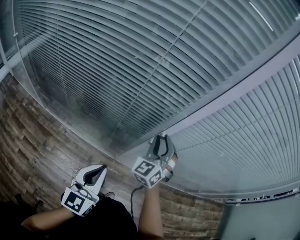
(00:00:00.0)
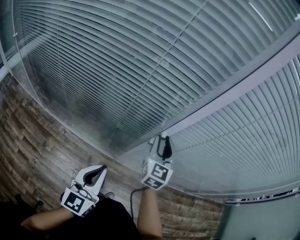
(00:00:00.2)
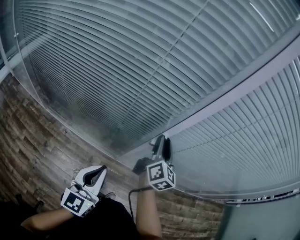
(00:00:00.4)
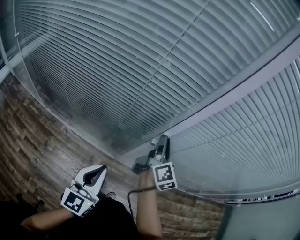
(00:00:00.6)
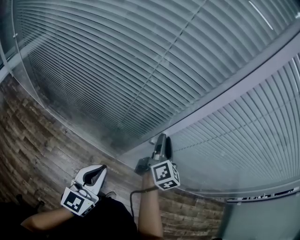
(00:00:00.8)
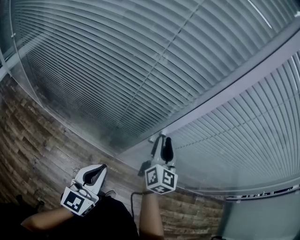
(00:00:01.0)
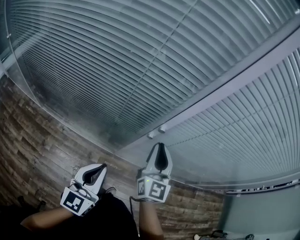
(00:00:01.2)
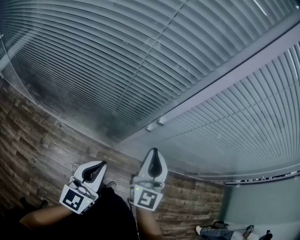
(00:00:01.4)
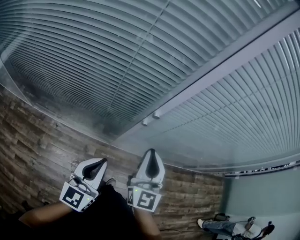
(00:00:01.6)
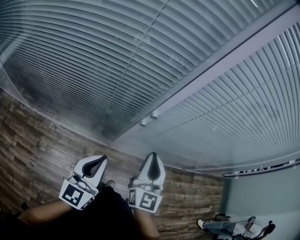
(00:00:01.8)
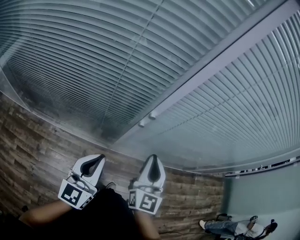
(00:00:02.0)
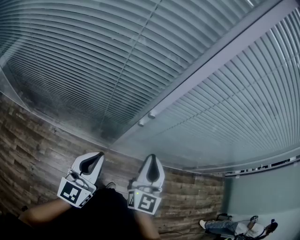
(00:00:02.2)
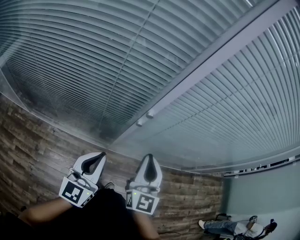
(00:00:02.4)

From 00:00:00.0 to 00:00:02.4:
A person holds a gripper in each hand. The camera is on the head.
From 00:00:00.0 to 00:00:01.2: The right gripper is displaced backward by some 5 cm, and rotates around the line of its fingers by roughly 40 degrees, clockwise from behind.
From 00:00:01.2 to 00:00:02.4: The right gripper travels backward by about 10 cm.

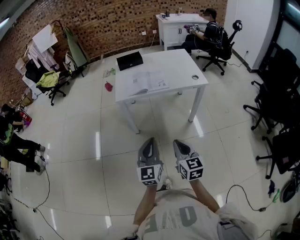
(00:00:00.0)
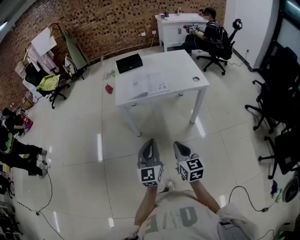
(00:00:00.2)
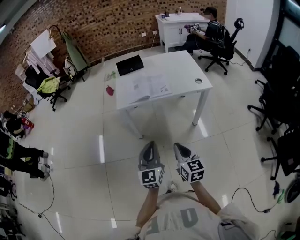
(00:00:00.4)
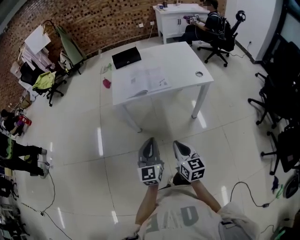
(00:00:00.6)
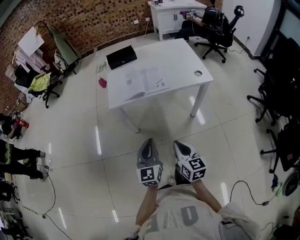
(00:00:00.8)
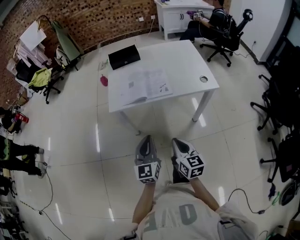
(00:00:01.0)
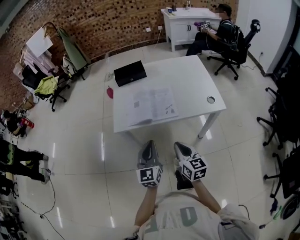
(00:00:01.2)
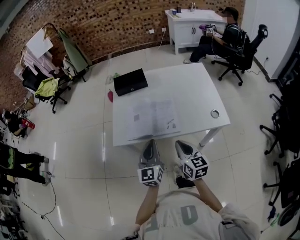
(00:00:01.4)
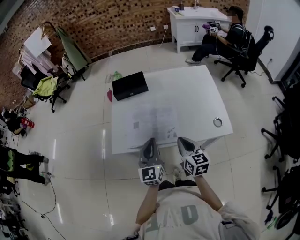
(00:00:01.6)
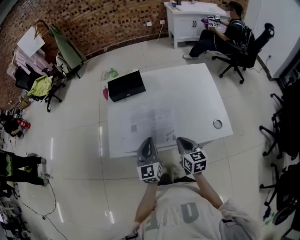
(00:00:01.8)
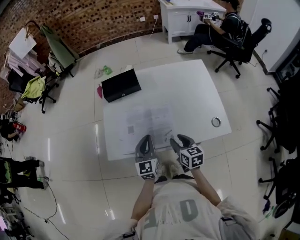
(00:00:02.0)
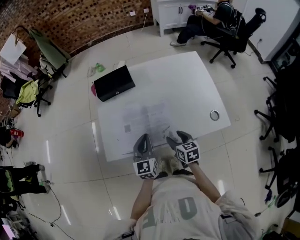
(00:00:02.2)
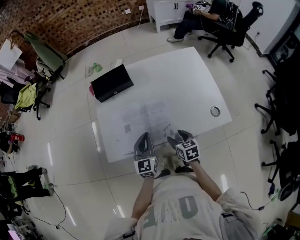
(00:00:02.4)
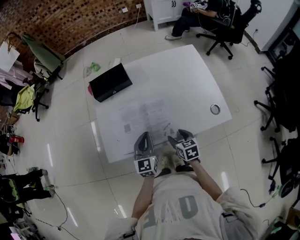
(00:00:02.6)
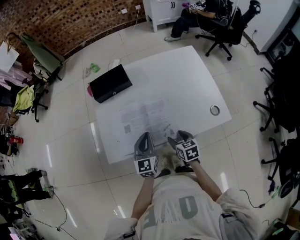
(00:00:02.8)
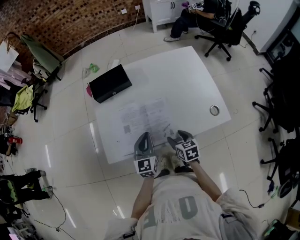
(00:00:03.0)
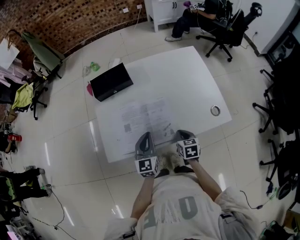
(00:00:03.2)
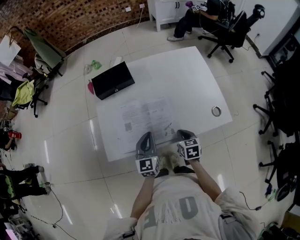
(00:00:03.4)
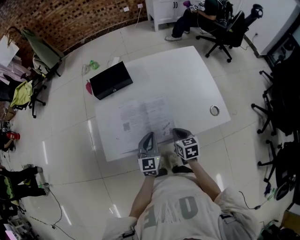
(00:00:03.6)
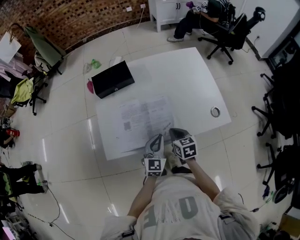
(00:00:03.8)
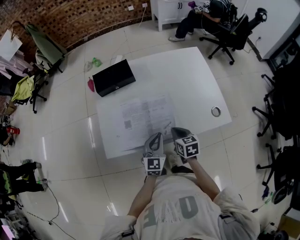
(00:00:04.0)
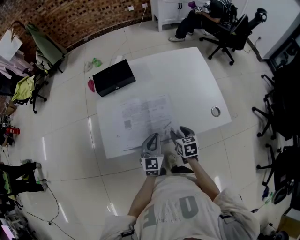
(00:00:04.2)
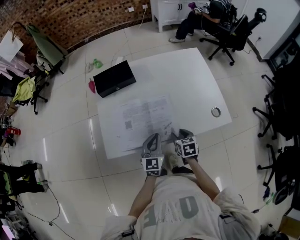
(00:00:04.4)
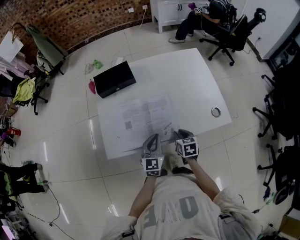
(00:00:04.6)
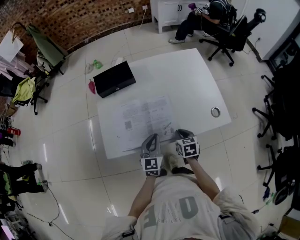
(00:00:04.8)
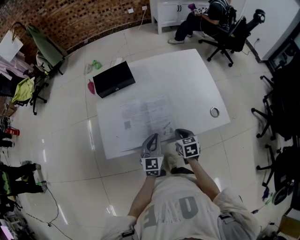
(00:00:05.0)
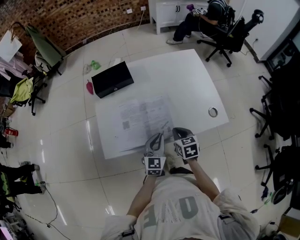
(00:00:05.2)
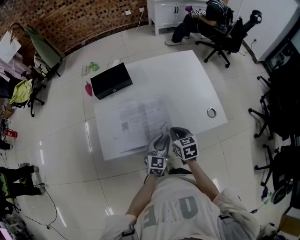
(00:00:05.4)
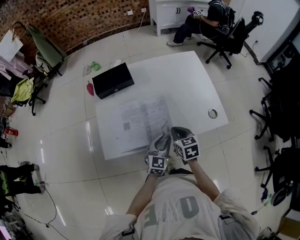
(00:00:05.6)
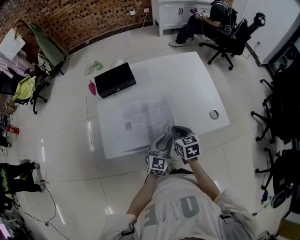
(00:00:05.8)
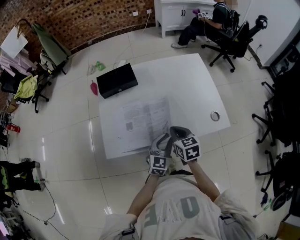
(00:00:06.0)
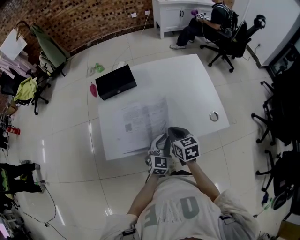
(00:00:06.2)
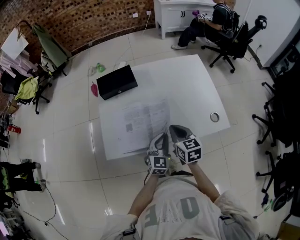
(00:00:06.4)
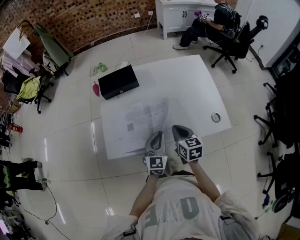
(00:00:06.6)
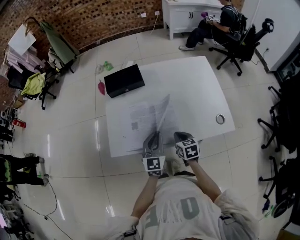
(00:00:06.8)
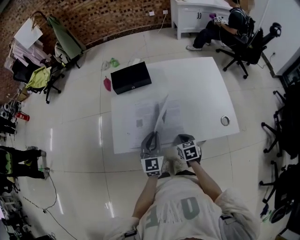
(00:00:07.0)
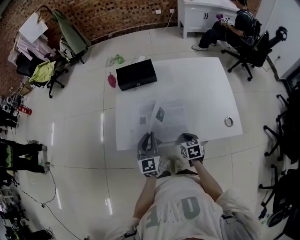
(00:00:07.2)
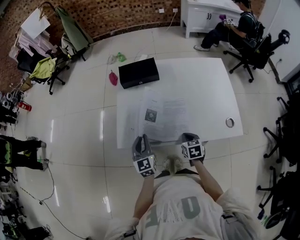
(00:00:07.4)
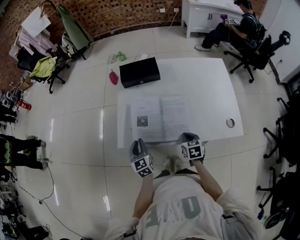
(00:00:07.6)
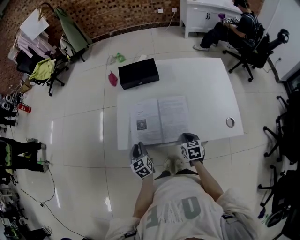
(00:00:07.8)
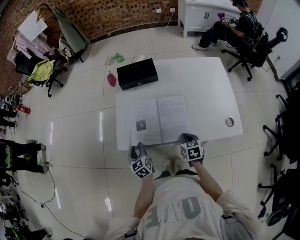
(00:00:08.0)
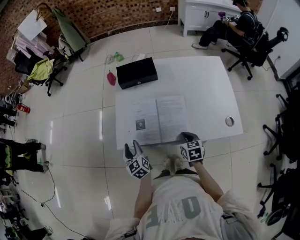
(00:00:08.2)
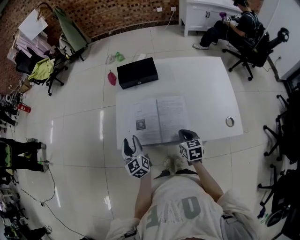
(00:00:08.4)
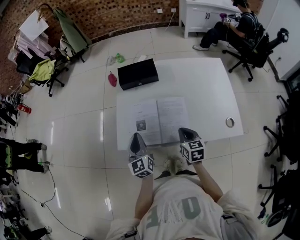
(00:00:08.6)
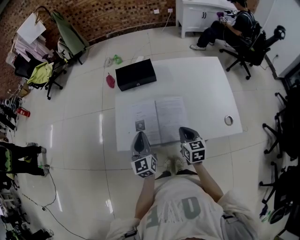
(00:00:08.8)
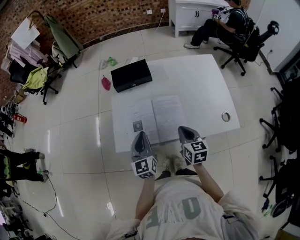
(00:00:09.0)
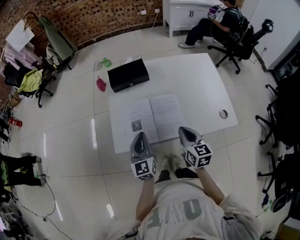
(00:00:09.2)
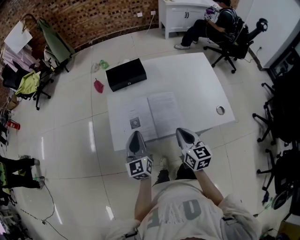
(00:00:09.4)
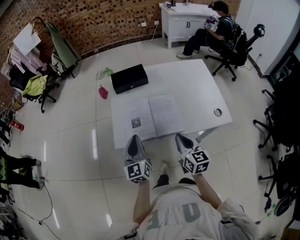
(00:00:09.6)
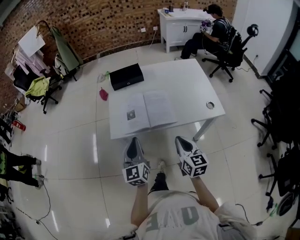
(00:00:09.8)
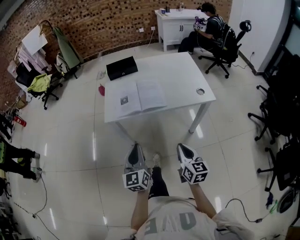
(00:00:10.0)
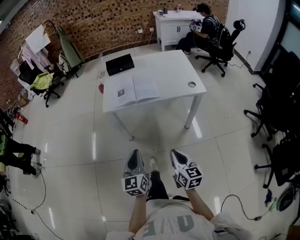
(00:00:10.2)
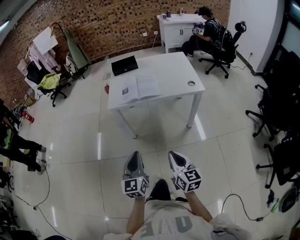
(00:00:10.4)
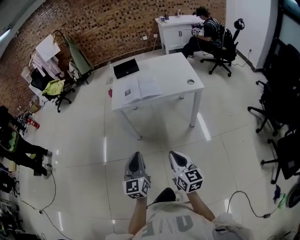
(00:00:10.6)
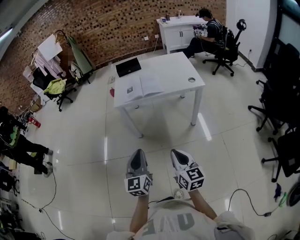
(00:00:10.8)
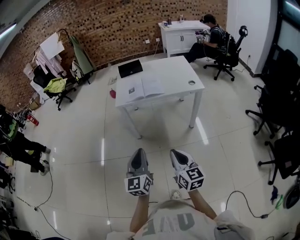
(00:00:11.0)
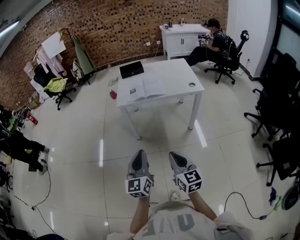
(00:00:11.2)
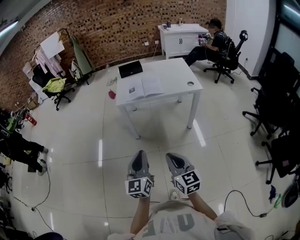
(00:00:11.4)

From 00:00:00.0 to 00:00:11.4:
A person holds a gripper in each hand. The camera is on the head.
From 00:00:00.0 to 00:00:01.4: The two grippers go roughly 40 cm forward.
From 00:00:01.4 to 00:00:02.8: The left gripper shifts approximately 15 cm forward and downward. The right gripper moves downward and forward, roughly 20 cm, swivels roughly 30 degrees, and opens up.
From 00:00:02.8 to 00:00:04.2: The left gripper changes place by roughly 5 cm; the right gripper closes and opens again.
From 00:00:04.2 to 00:00:05.6: The left gripper heads to the right, covering approximately 5 cm, and opens, while the right gripper shifts about 5 cm upward, and closes its fingers.
From 00:00:05.6 to 00:00:07.2: The right gripper shifts roughly 10 cm downward, while the left gripper goes about 15 cm to the left, and turns by some 30 degrees.
From 00:00:07.2 to 00:00:08.6: The right gripper goes approximately 10 cm upward. Meanwhile the left gripper is displaced to the left by approximately 10 cm, and opens, then closes once more.
From 00:00:08.6 to 00:00:10.0: The two grippers go roughly 35 cm backward. The right gripper rotates some 20 degrees.
From 00:00:10.0 to 00:00:11.4: Both grippers travel together backward, some 30 cm.

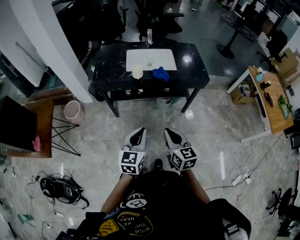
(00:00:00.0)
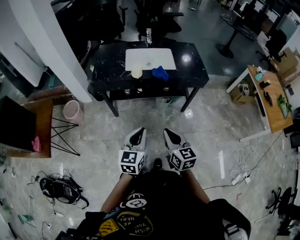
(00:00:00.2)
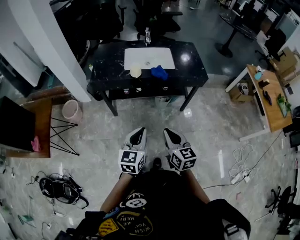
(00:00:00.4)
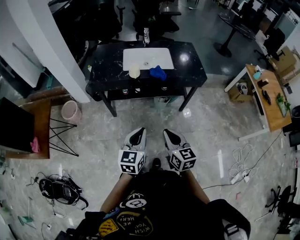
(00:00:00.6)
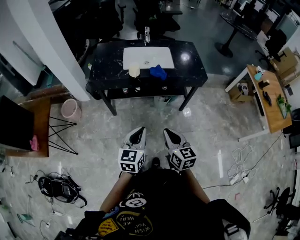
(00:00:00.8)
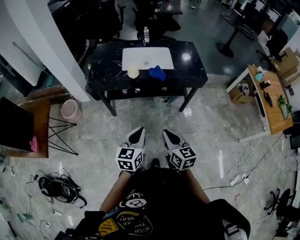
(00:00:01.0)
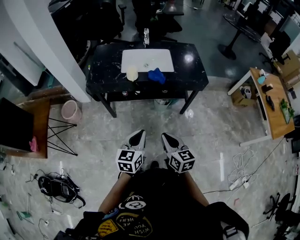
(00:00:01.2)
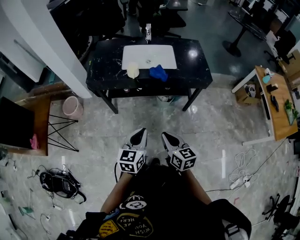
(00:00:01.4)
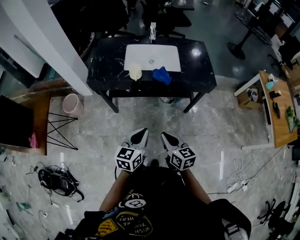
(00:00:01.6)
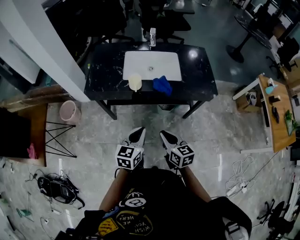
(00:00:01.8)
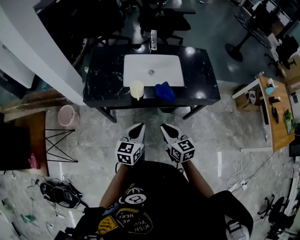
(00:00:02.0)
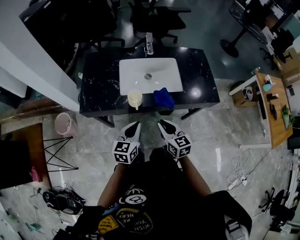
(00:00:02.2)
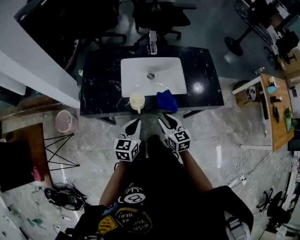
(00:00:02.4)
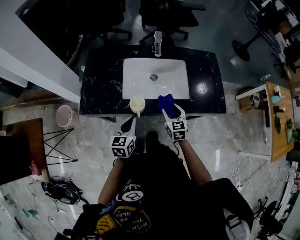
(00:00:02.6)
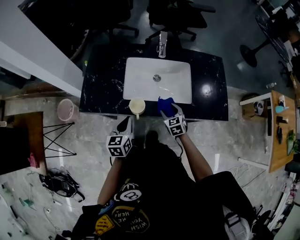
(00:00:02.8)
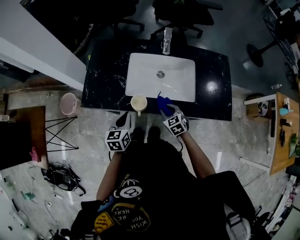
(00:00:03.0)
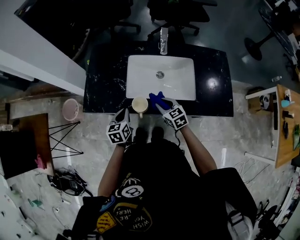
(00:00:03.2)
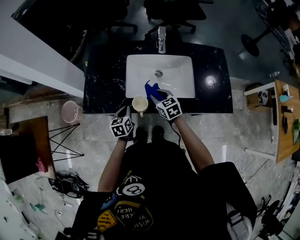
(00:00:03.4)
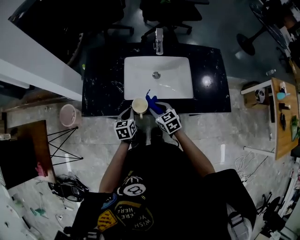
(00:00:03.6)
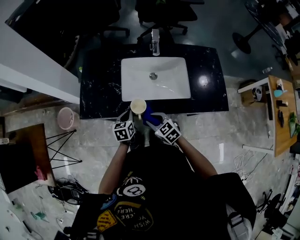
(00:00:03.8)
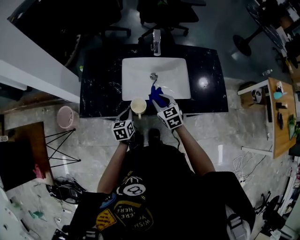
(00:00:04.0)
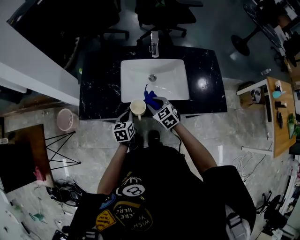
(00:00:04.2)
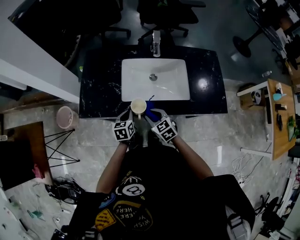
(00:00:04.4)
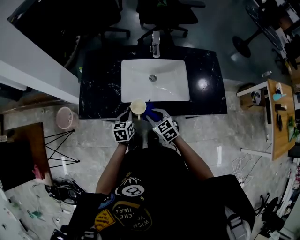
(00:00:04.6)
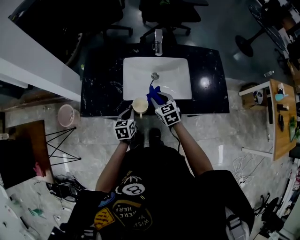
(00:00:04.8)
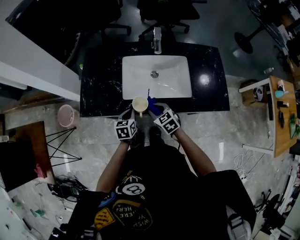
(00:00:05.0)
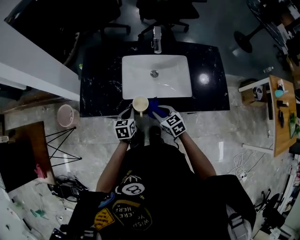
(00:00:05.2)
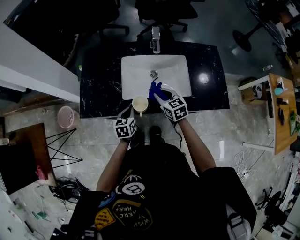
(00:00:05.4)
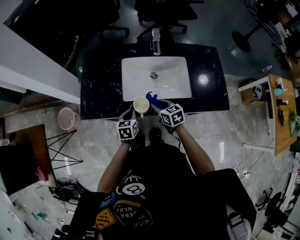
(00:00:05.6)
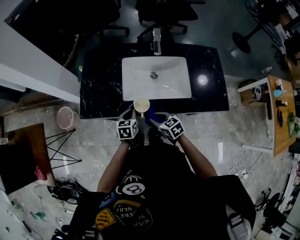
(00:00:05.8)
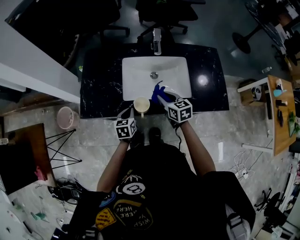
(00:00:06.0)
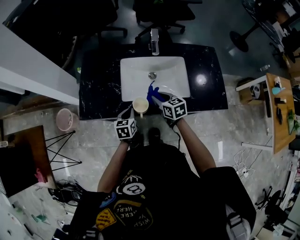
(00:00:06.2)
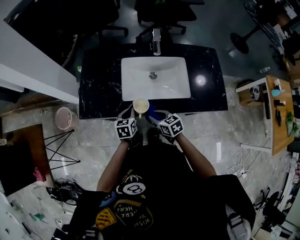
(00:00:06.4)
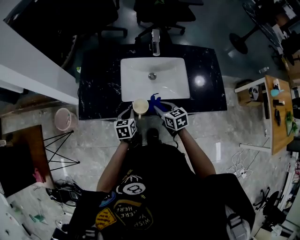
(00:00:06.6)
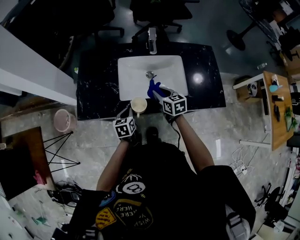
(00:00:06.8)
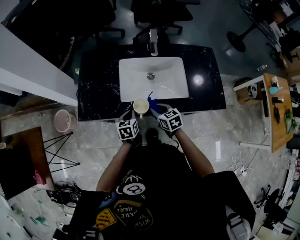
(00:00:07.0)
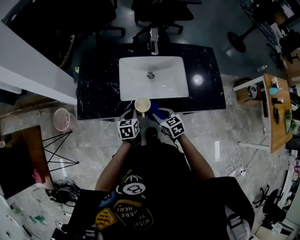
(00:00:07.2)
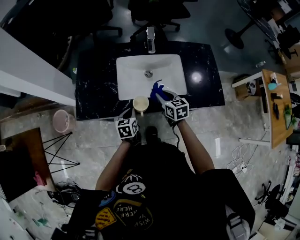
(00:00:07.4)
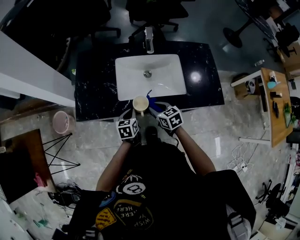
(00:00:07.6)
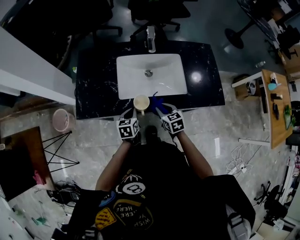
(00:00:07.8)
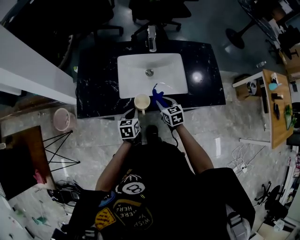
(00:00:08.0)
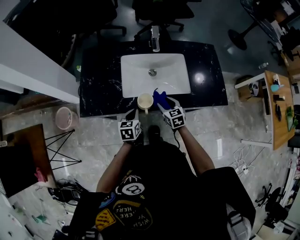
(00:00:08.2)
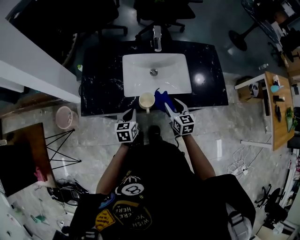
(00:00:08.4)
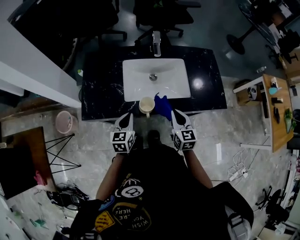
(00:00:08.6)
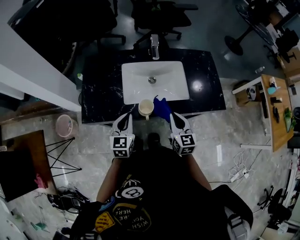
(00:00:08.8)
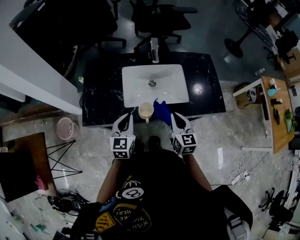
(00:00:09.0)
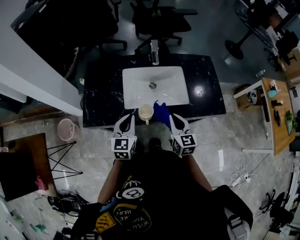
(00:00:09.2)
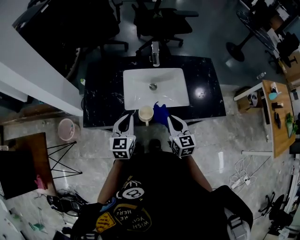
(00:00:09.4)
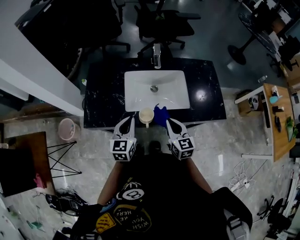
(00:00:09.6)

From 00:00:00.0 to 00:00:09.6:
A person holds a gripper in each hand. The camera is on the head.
From 00:00:00.0 to 00:00:01.6: The left gripper goes roughly 15 cm forward, downward and to the right, while the right gripper travels forward and downward by approximately 10 cm.
From 00:00:01.6 to 00:00:03.2: Both grippers are carried forward, approximately 40 cm. The right gripper changes its angle by about 30 degrees, and opens; the left gripper rotates some 30 degrees.
From 00:00:03.2 to 00:00:04.8: The left gripper changes place by approximately 5 cm; the right gripper goes forward and backward, roughly 10 cm each way, reversing 4 times.
From 00:00:04.8 to 00:00:06.4: The right gripper goes forward and backward, about 10 cm each way, reversing 4 times, and turns by about 20 degrees.
From 00:00:06.4 to 00:00:08.0: The right gripper moves forward and backward over approximately 10 cm, changing direction 3 times.
From 00:00:08.0 to 00:00:09.6: The right gripper moves upward and backward, roughly 15 cm, turns by about 20 degrees, and closes its fingers, while the left gripper travels upward by roughly 15 cm, and turns by some 30 degrees.
